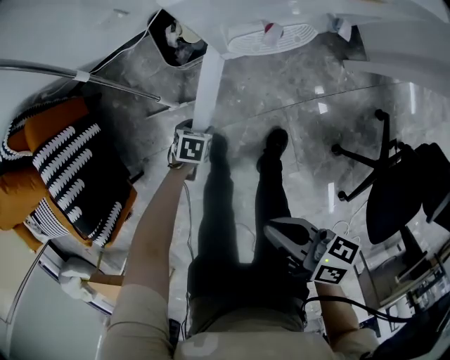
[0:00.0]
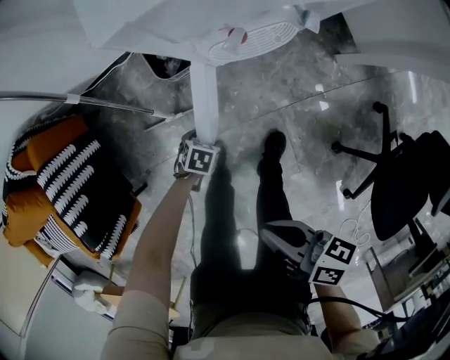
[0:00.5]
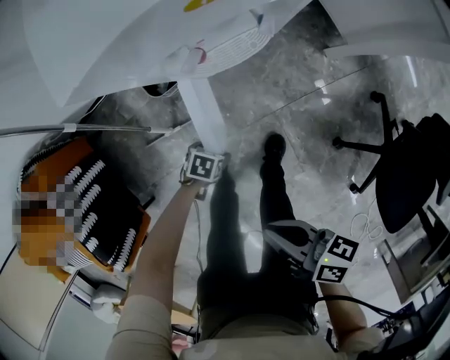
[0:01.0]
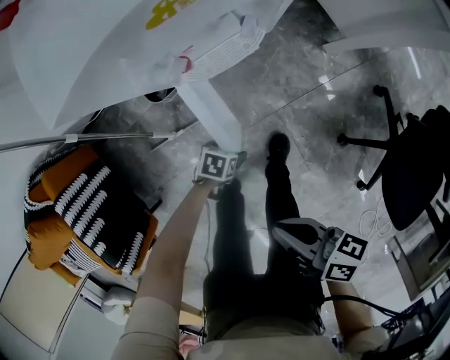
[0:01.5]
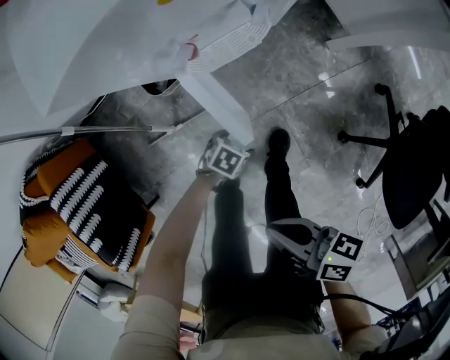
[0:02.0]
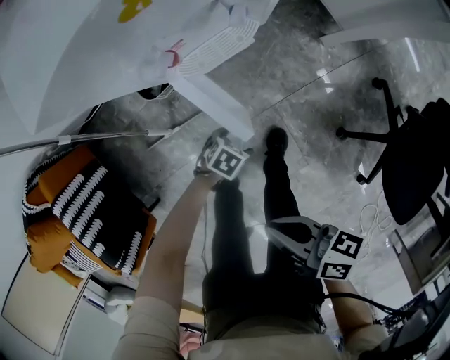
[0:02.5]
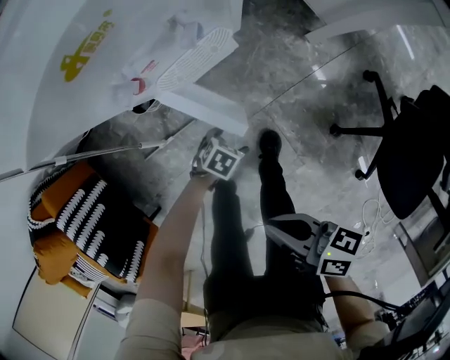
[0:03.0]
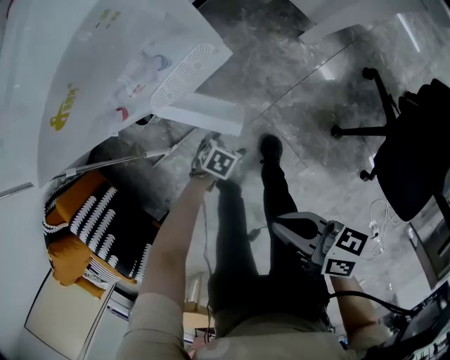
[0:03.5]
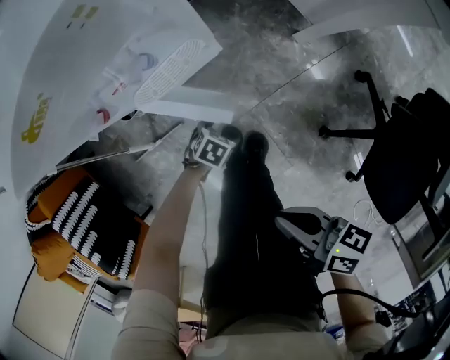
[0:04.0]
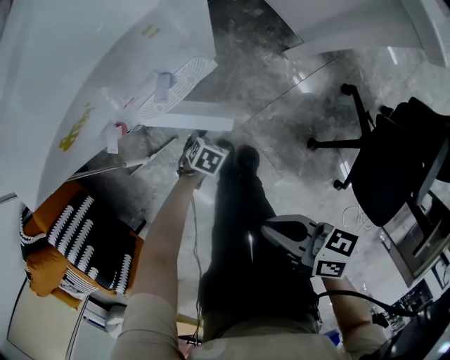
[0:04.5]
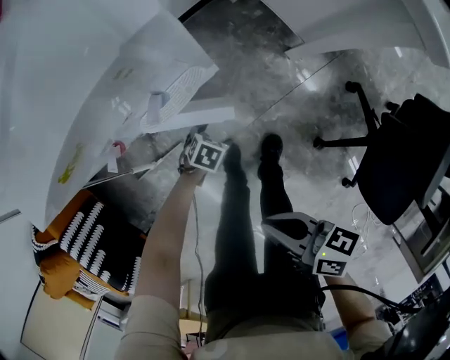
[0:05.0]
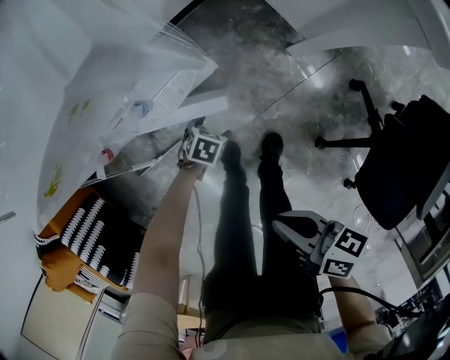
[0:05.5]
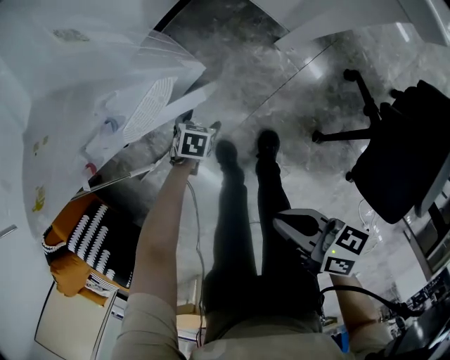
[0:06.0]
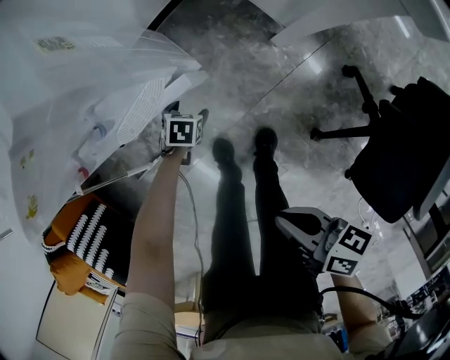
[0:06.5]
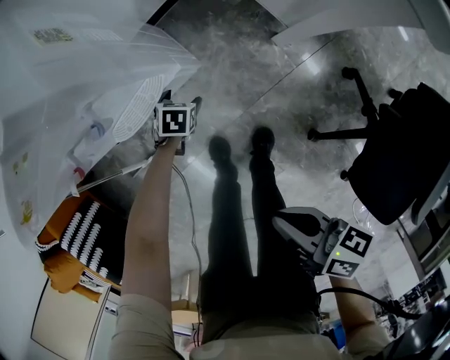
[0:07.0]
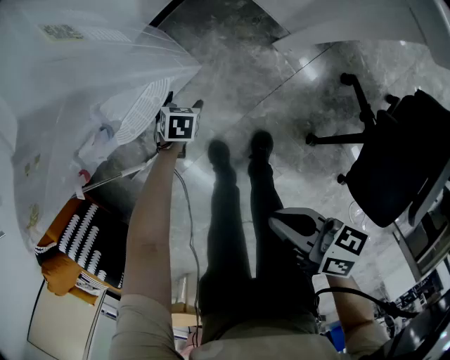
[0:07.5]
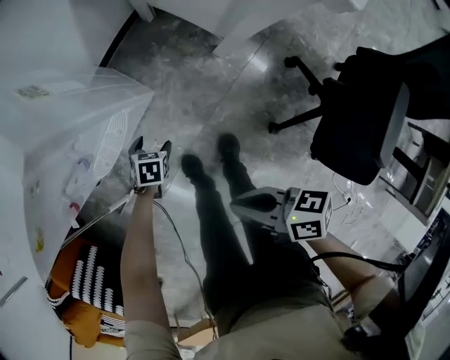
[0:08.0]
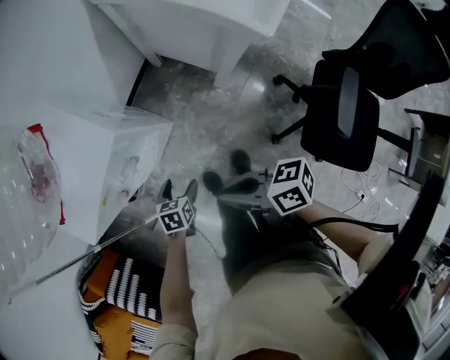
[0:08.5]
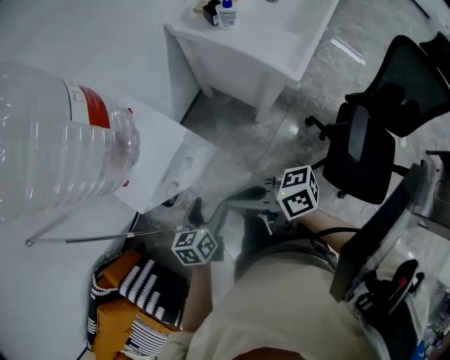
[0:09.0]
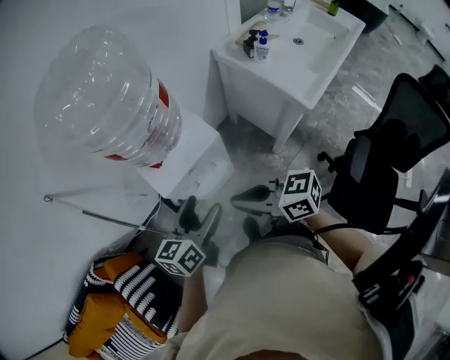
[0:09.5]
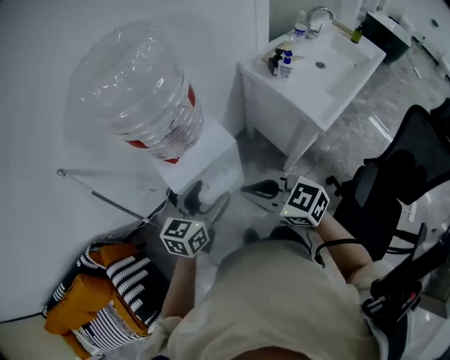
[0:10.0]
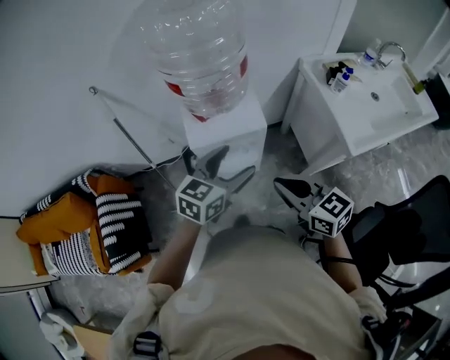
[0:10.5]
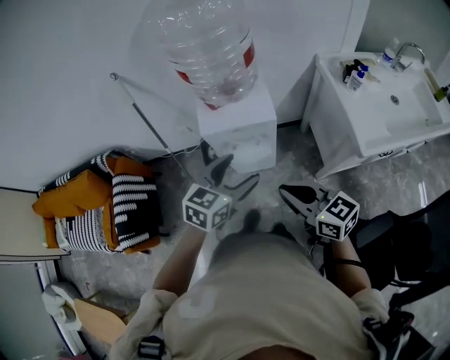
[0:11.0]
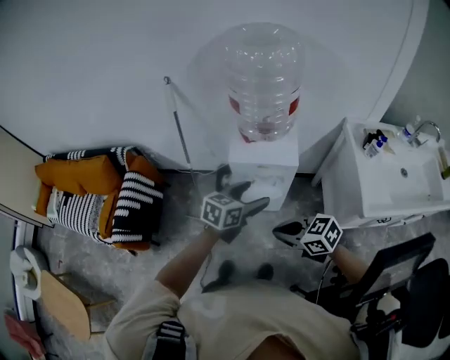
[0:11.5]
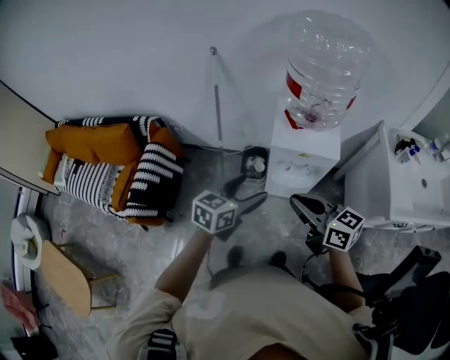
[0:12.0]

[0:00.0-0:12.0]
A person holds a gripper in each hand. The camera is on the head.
0:00.0 to 0:02.0: The left gripper shifts by some 20 cm, turns by some 30 degrees, and opens its fingers.
0:02.0 to 0:04.0: The left gripper changes place by roughly 10 cm, while the right gripper moves about 15 cm.
0:04.0 to 0:06.0: The left gripper changes place by roughly 15 cm, while the right gripper ends up approximately 5 cm from where it was.
0:08.0 to 0:10.0: The right gripper heads upward, covering about 40 cm, and rolls counterclockwise, seen from behind, by roughly 70 degrees, while the left gripper is displaced upward by some 60 cm, and angles its fingers upward, by approximately 50 degrees.
0:10.0 to 0:12.0: The left gripper shifts by some 20 cm, and turns by approximately 30 degrees. The right gripper travels downward and back again, about 5 cm each way, and rotates about 30 degrees.

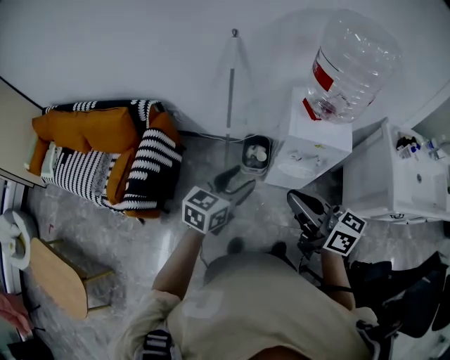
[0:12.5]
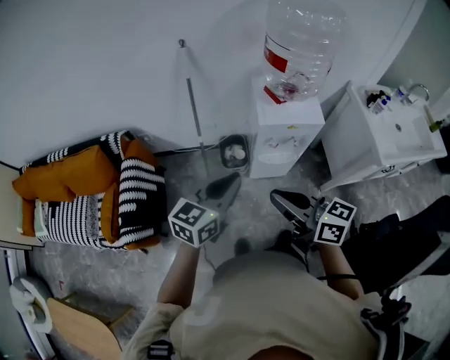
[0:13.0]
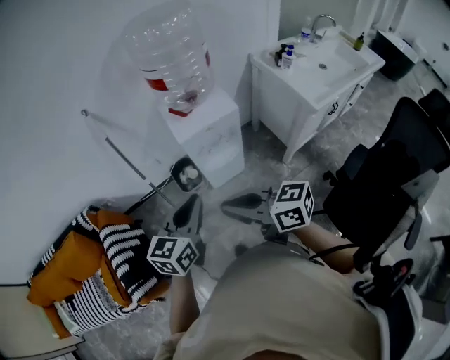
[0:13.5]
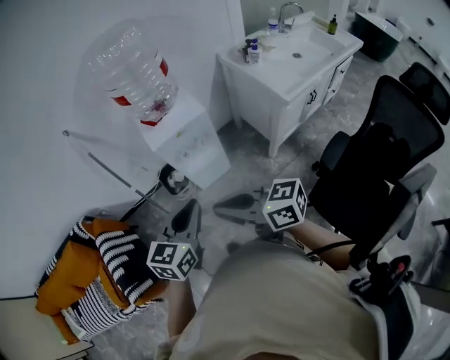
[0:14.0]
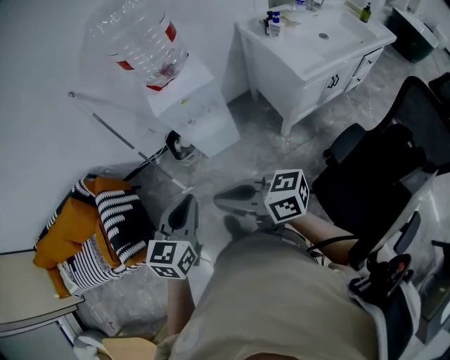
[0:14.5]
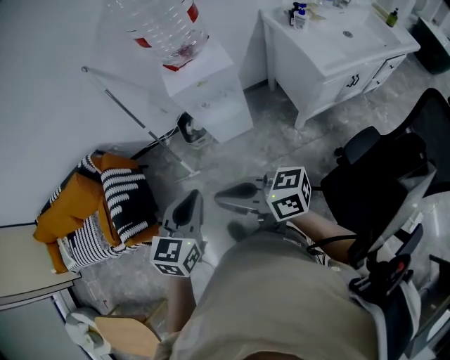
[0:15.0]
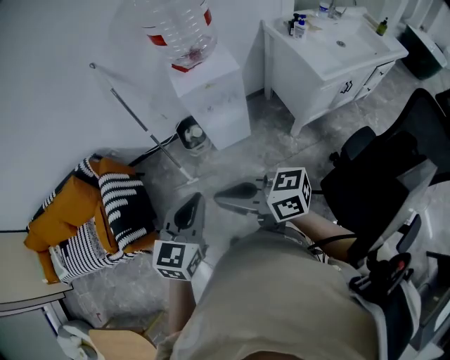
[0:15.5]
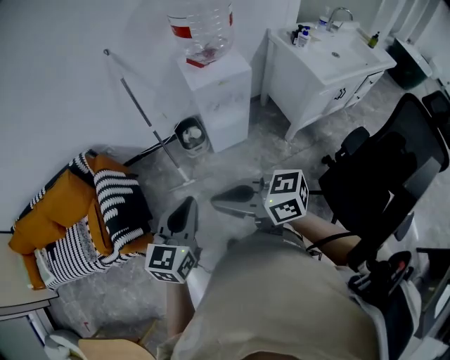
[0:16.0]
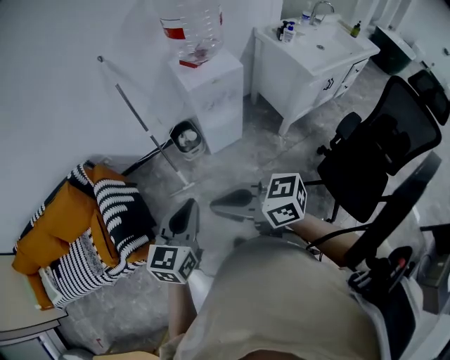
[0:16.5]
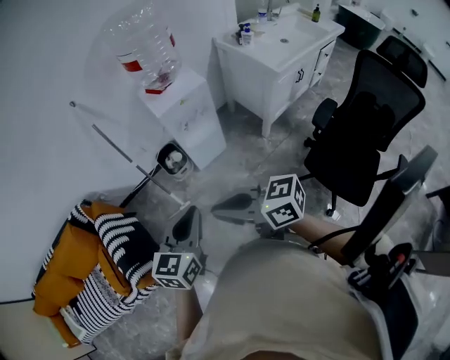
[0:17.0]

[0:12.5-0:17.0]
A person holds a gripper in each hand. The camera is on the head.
0:12.5 to 0:14.5: Both grippers travel together backward and to the right, approximately 25 cm. The left gripper closes up.
0:14.5 to 0:17.0: Both grippers move to the left, about 15 cm.

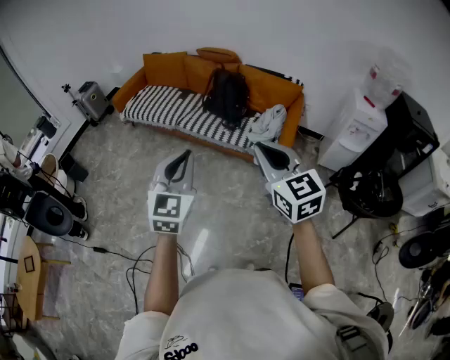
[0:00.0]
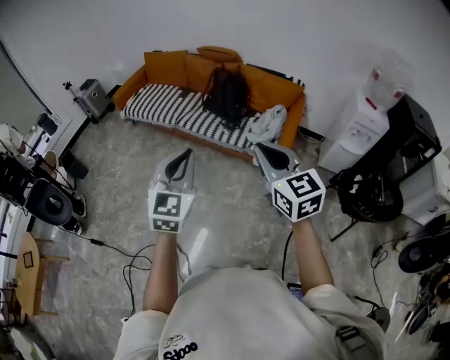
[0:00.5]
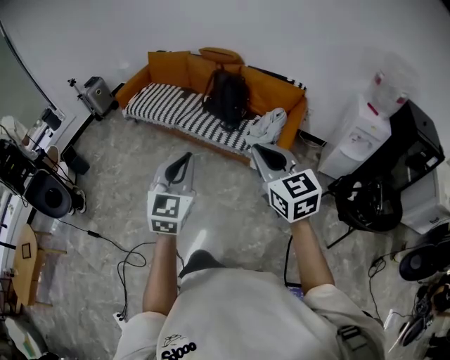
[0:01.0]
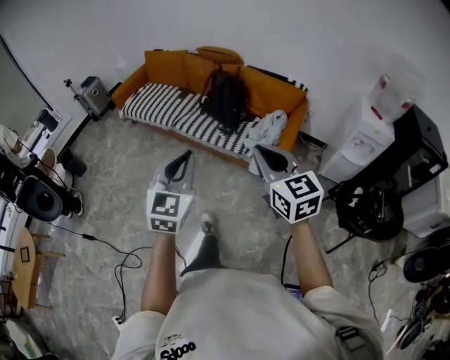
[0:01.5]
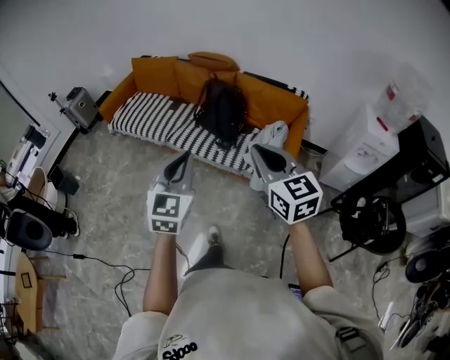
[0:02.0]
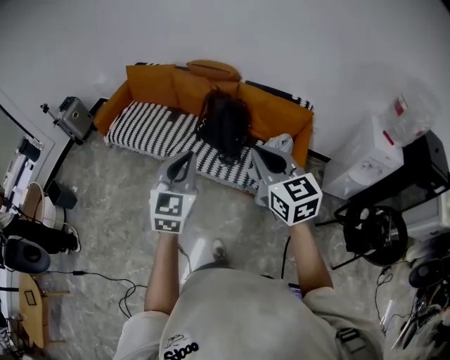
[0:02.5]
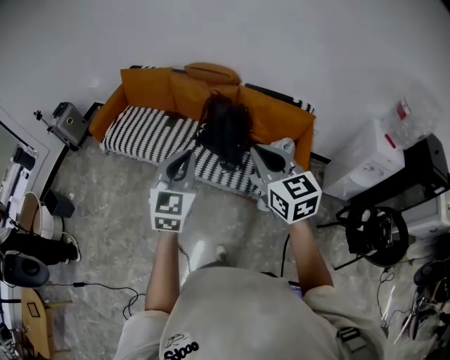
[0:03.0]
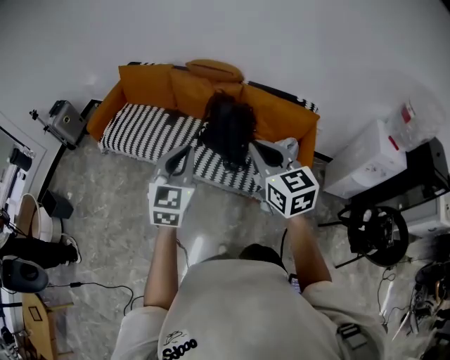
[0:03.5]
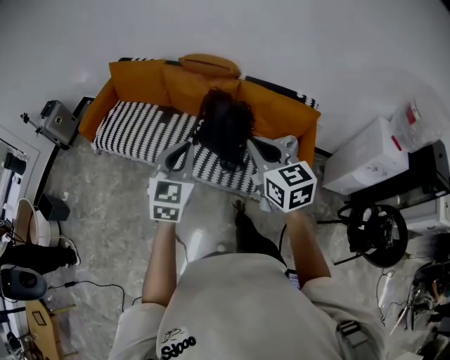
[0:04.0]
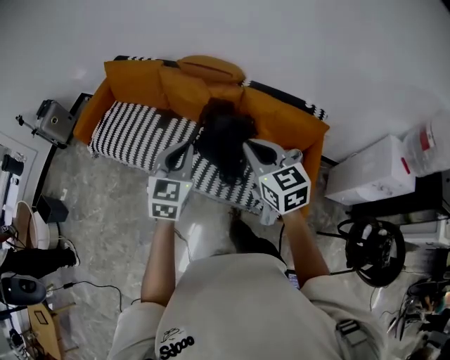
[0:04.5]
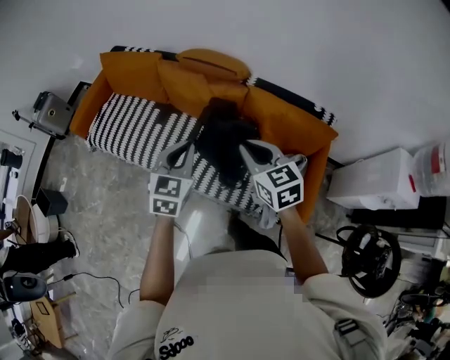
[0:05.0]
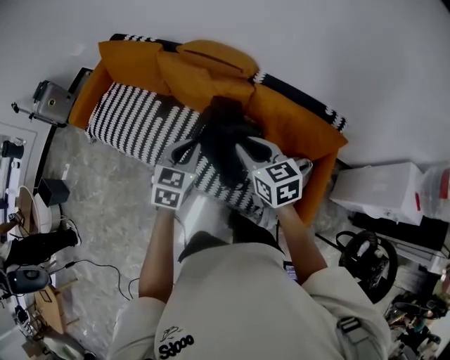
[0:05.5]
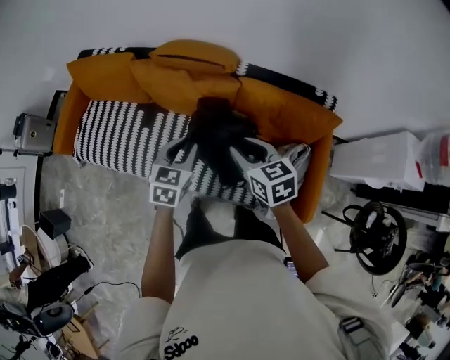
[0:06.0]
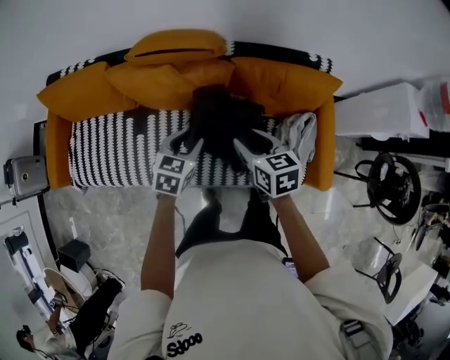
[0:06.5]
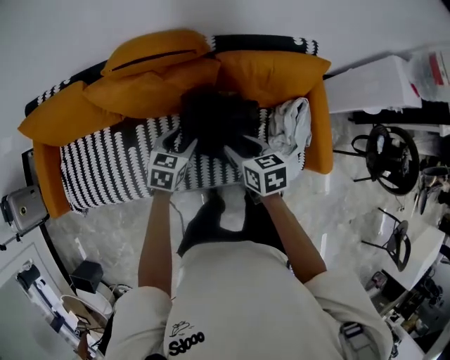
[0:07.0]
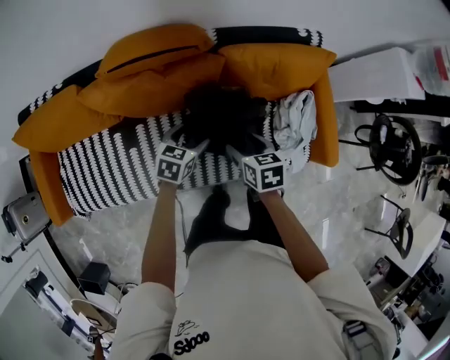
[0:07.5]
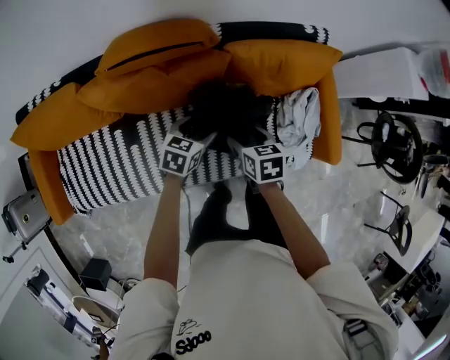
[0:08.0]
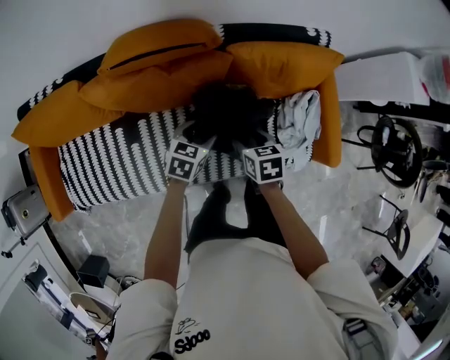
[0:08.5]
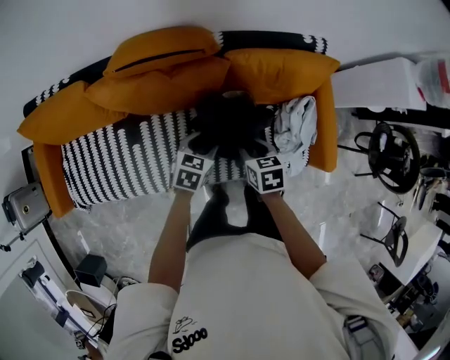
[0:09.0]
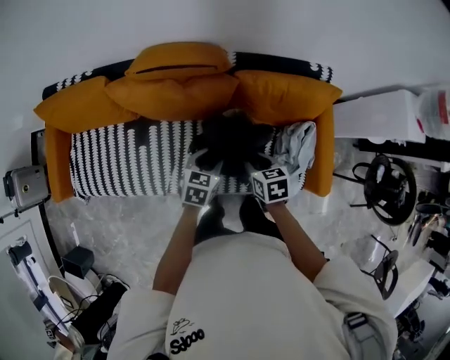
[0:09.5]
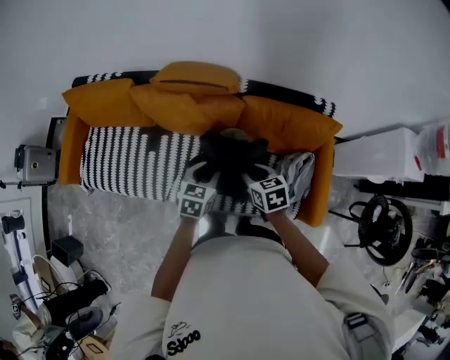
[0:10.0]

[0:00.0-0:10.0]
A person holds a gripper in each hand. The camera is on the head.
0:00.0 to 0:02.0: Both grippers travel together forward, roughly 25 cm.
0:02.0 to 0:04.0: The grippers both shift forward by roughly 30 cm.
0:04.0 to 0:06.0: Both grippers move forward and downward, about 40 cm. The left gripper swivels approximately 30 degrees; the right gripper rotates about 20 degrees, and opens its fingers.
0:06.0 to 0:08.0: The two grippers go some 20 cm downward. The left gripper swivels approximately 40 degrees, and opens its fingers, while the right gripper changes its angle by some 40 degrees, and opens.
0:08.0 to 0:10.0: The grippers both shift upward by approximately 15 cm. The right gripper rotates some 30 degrees, and closes. Meanwhile the left gripper rotates some 30 degrees, and closes.
